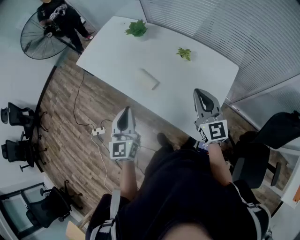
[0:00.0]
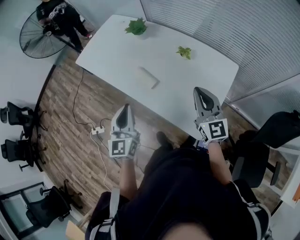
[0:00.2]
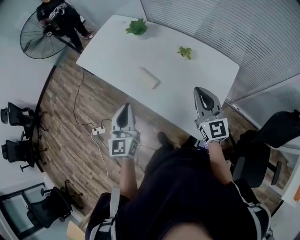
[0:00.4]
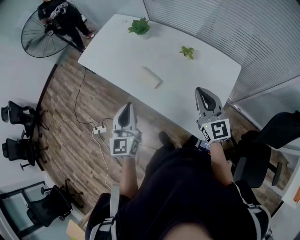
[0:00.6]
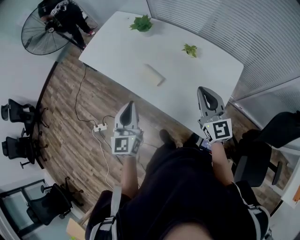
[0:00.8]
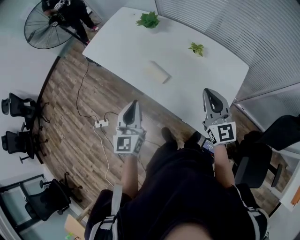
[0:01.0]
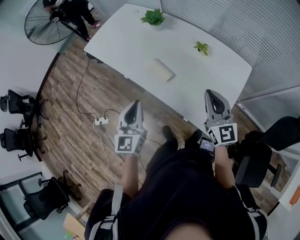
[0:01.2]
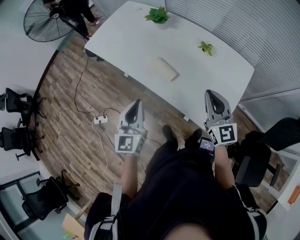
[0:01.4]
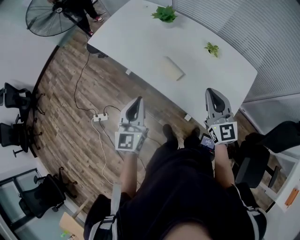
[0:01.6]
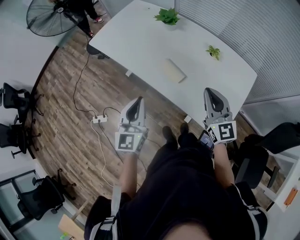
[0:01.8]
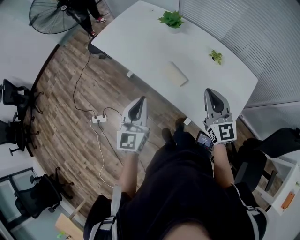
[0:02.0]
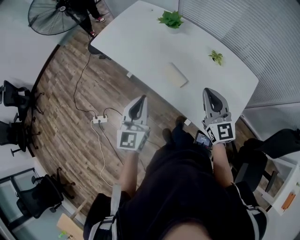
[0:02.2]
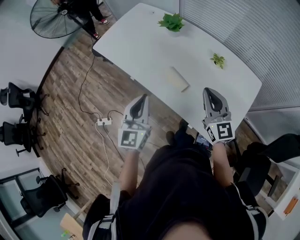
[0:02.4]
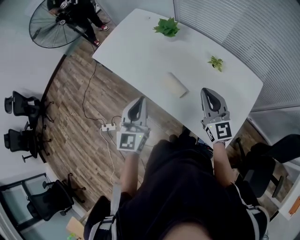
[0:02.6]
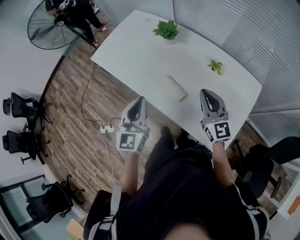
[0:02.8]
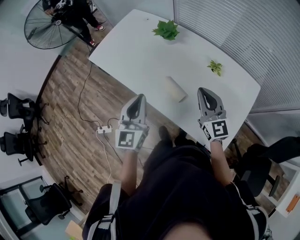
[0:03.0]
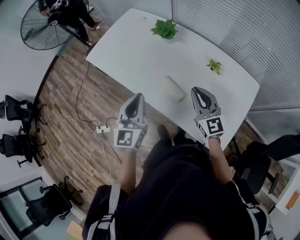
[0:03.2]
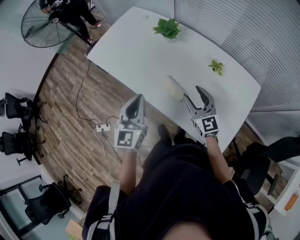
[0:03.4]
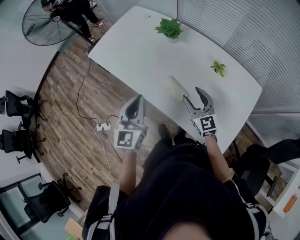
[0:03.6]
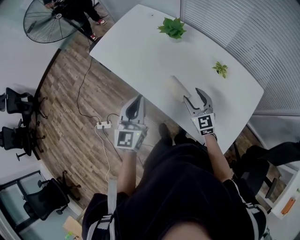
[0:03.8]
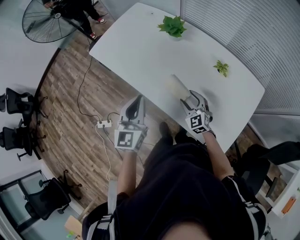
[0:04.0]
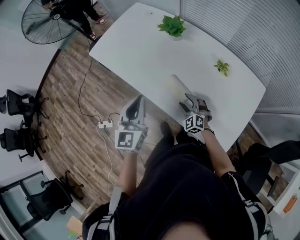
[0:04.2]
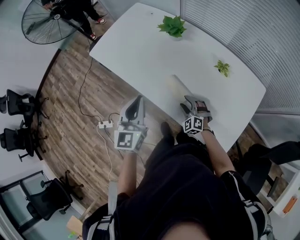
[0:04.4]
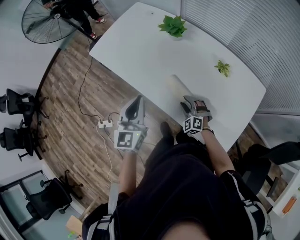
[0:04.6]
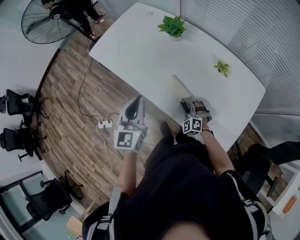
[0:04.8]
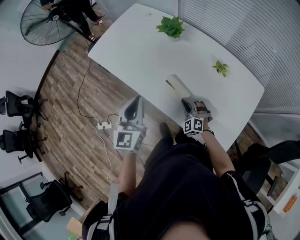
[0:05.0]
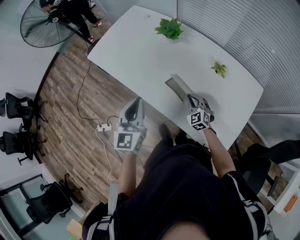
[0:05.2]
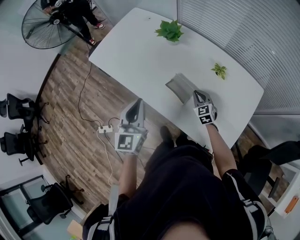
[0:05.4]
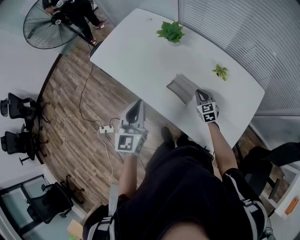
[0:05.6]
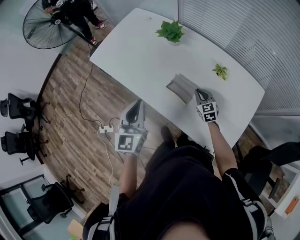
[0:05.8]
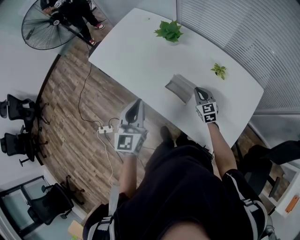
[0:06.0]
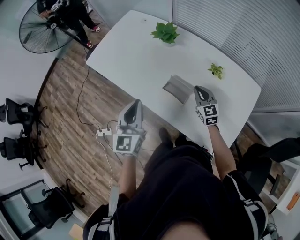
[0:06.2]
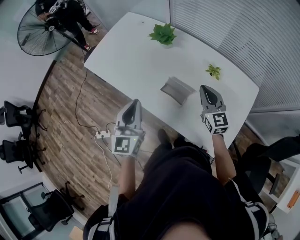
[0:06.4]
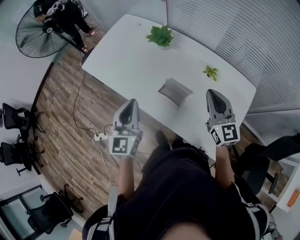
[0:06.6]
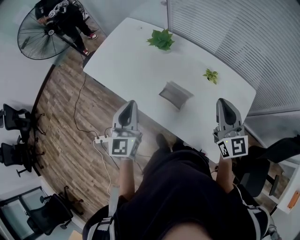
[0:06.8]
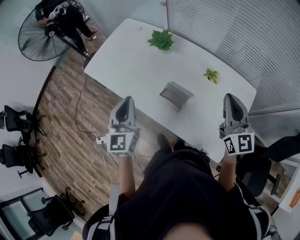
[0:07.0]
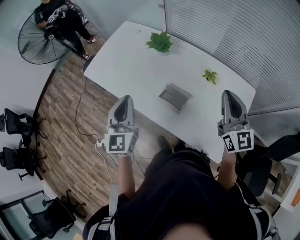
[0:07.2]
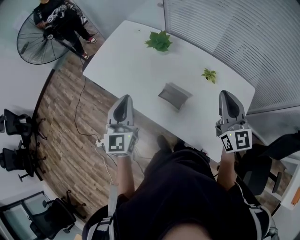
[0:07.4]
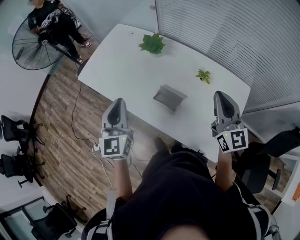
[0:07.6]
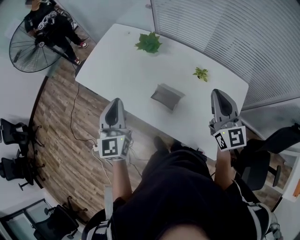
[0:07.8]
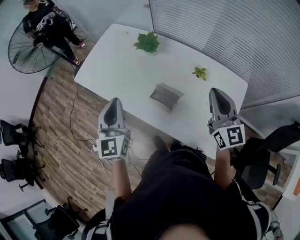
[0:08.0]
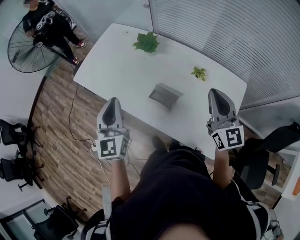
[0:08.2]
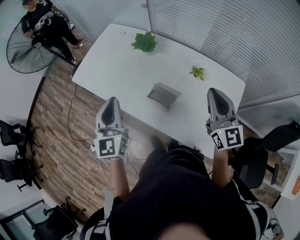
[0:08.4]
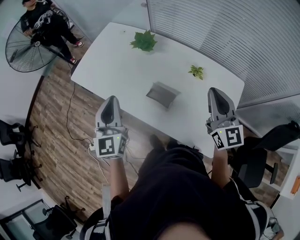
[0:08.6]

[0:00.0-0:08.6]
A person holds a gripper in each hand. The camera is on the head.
0:00.0 to 0:01.4: The grippers both shift to the left by roughly 10 cm.
0:01.4 to 0:02.8: Both grippers travel together forward, roughly 10 cm.
0:02.8 to 0:04.4: The right gripper is displaced downward by about 25 cm, tips its fingers downward by roughly 40 degrees, and opens its fingers. Meanwhile the left gripper shifts by approximately 5 cm.
0:04.4 to 0:05.8: The right gripper shifts approximately 10 cm to the right and forward, rotates around the line of its fingers by approximately 40 degrees, clockwise from behind, and closes its fingers.
0:05.8 to 0:07.2: The right gripper heads upward, covering roughly 35 cm, and tilts its fingers roughly 40 degrees upward, while the left gripper goes approximately 5 cm upward.
0:07.2 to 0:08.6: The grippers make only small movements.

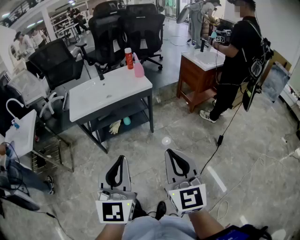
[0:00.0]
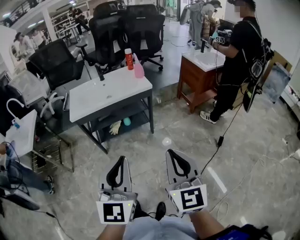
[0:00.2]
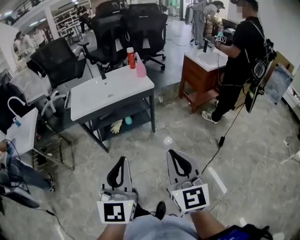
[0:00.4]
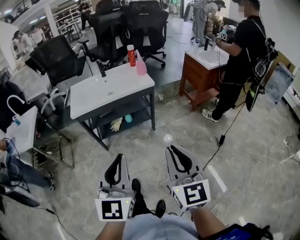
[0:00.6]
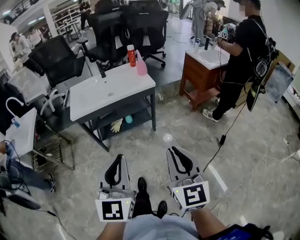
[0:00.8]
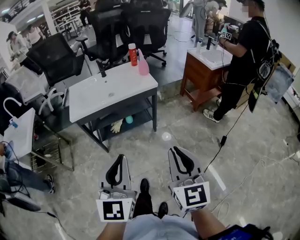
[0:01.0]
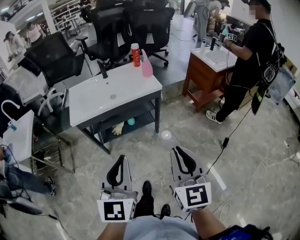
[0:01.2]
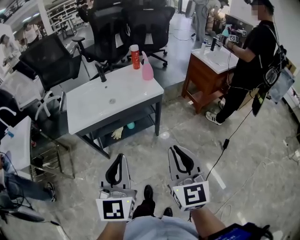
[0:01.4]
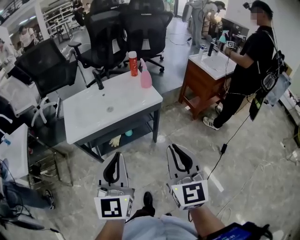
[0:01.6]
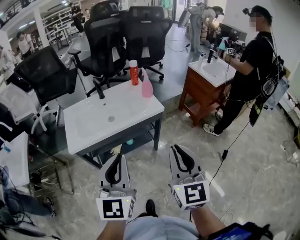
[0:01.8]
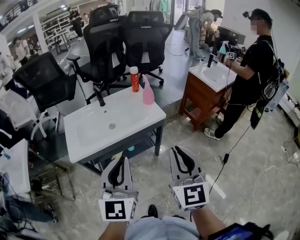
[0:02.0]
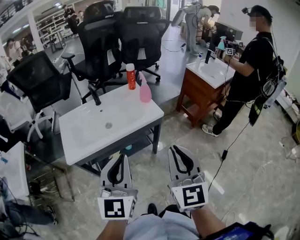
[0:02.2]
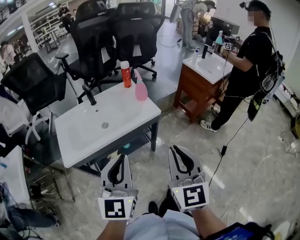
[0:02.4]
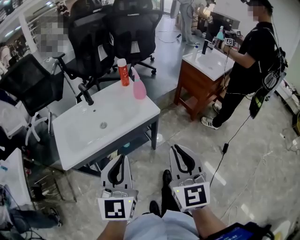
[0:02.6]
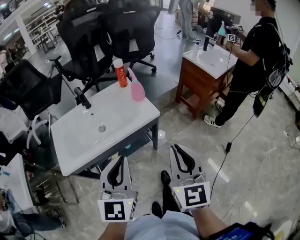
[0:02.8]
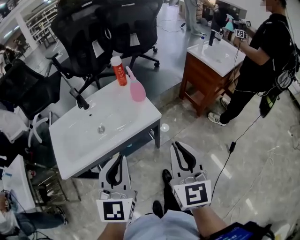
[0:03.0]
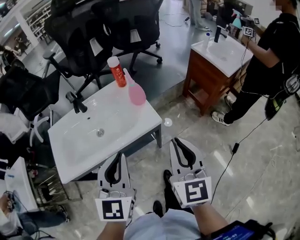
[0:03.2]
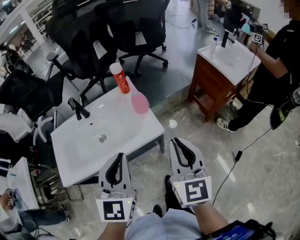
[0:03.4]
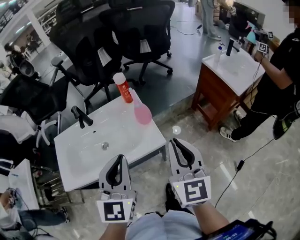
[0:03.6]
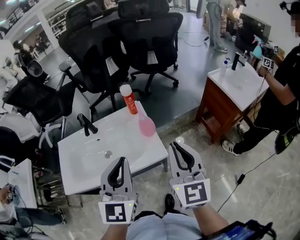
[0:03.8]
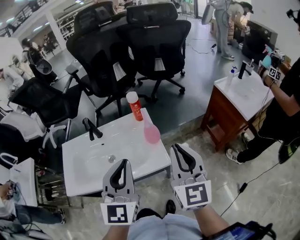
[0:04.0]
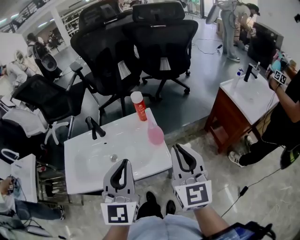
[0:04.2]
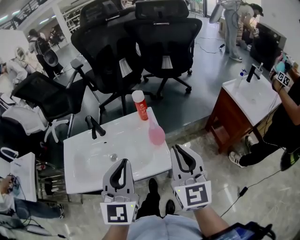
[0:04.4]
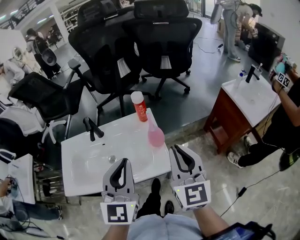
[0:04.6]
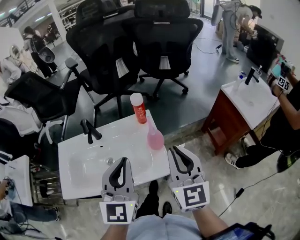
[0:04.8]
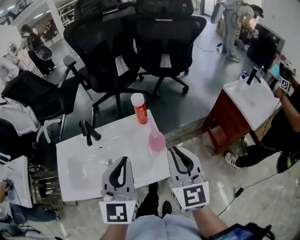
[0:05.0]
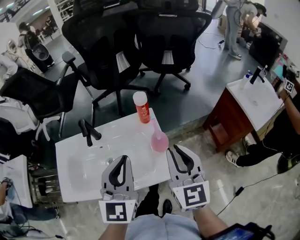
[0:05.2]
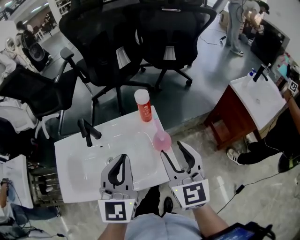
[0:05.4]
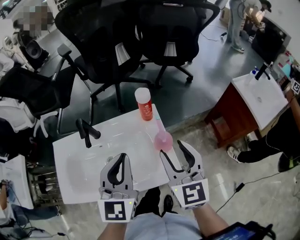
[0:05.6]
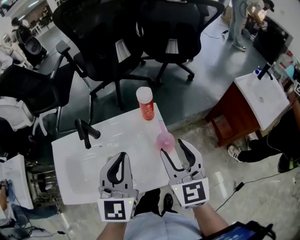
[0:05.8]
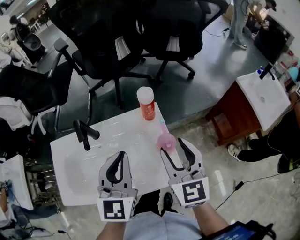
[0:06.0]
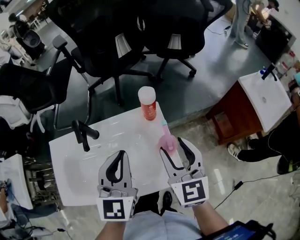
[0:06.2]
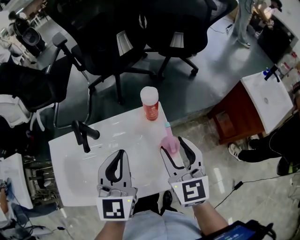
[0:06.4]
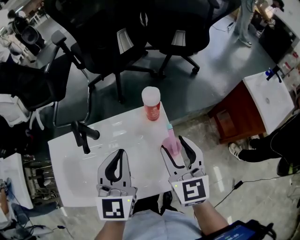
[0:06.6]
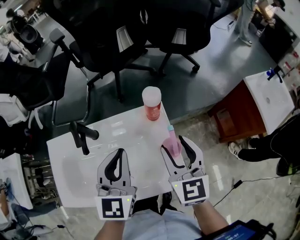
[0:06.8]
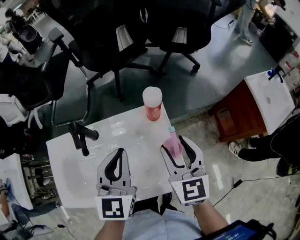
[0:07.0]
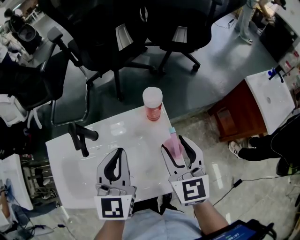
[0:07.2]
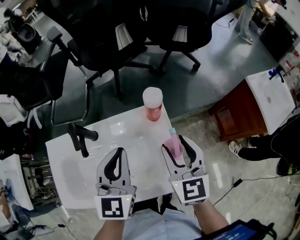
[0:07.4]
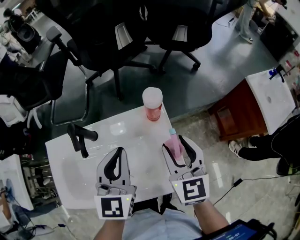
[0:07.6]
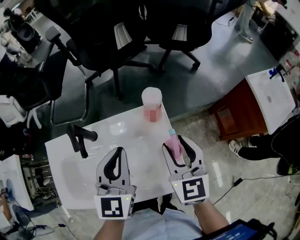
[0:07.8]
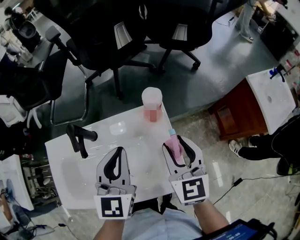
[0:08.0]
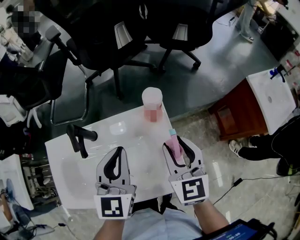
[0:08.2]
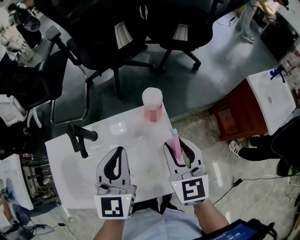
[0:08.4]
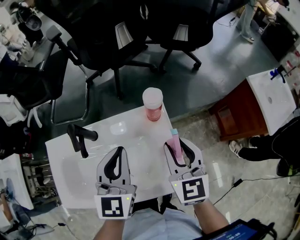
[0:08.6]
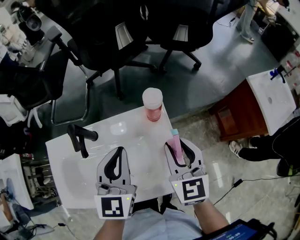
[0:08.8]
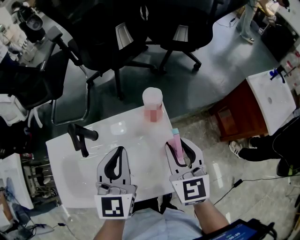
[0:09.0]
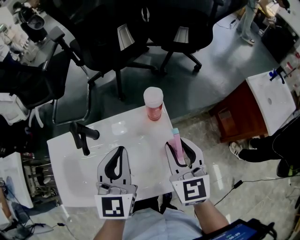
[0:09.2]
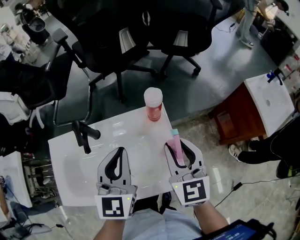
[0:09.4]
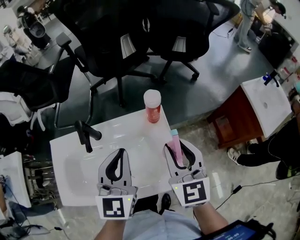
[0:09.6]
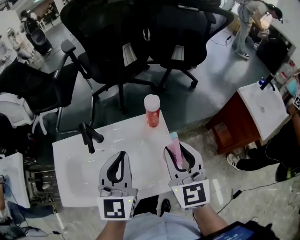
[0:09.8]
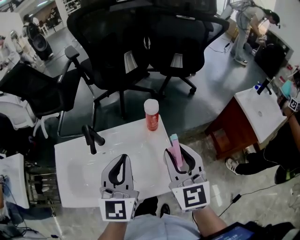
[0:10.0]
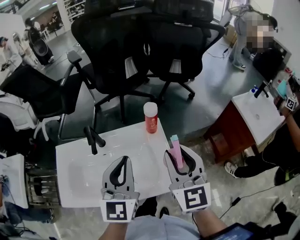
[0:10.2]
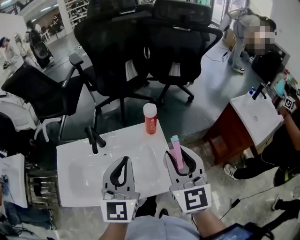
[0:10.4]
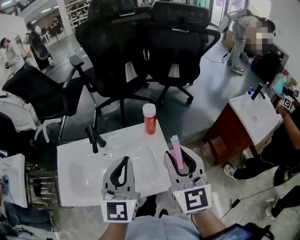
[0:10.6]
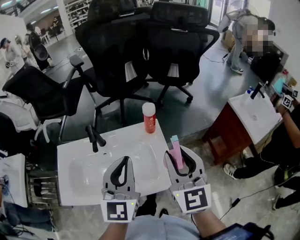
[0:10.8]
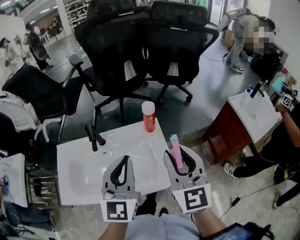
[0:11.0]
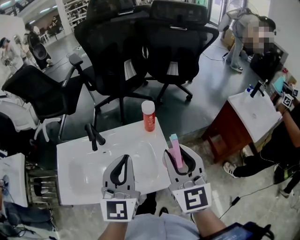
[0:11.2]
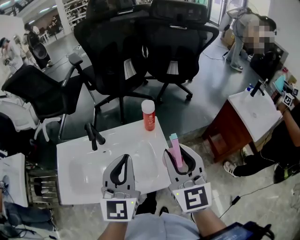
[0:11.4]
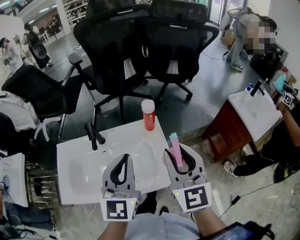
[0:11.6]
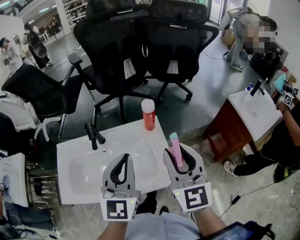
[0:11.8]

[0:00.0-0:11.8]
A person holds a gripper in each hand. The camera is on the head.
0:00.0 to 0:01.4: The right gripper moves forward, roughly 15 cm. The left gripper moves forward and to the left, some 20 cm.
0:01.4 to 0:03.0: The two grippers go about 30 cm forward.
0:03.0 to 0:04.4: Both grippers move forward, some 20 cm.
0:04.4 to 0:06.0: The right gripper is displaced forward, downward and to the left by some 20 cm, and opens its fingers. Meanwhile the left gripper moves forward and downward, roughly 15 cm.
0:06.0 to 0:07.4: Both grippers move forward, roughly 5 cm.
0:07.4 to 0:08.8: The right gripper closes.
0:08.8 to 0:10.4: The right gripper is displaced upward and backward by about 15 cm. Meanwhile the left gripper moves backward and upward, about 15 cm.
0:10.4 to 0:11.8: The grippers move only a little.

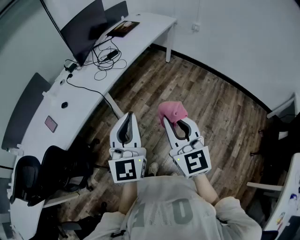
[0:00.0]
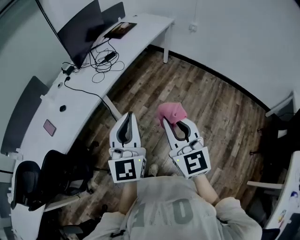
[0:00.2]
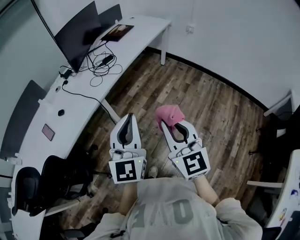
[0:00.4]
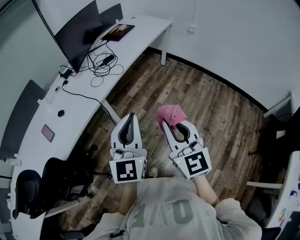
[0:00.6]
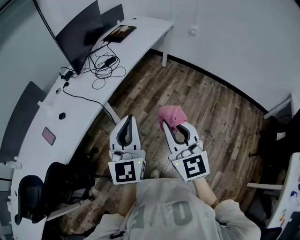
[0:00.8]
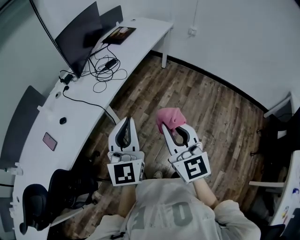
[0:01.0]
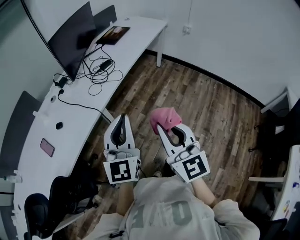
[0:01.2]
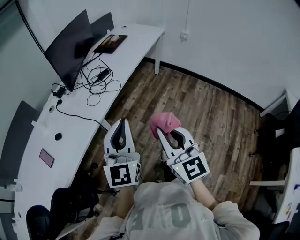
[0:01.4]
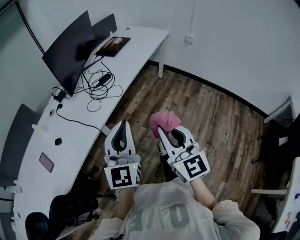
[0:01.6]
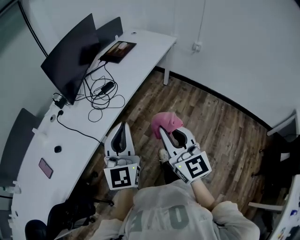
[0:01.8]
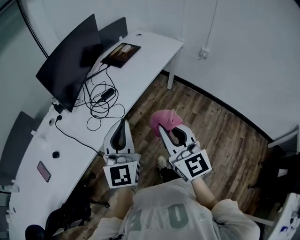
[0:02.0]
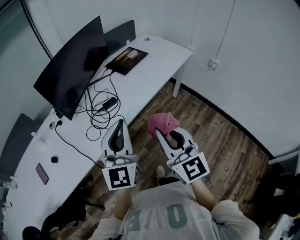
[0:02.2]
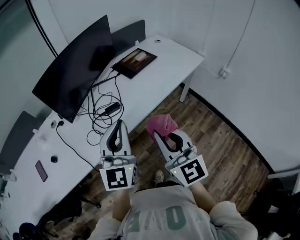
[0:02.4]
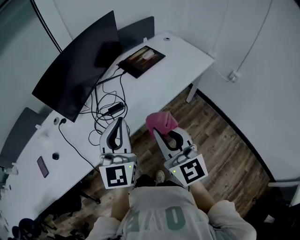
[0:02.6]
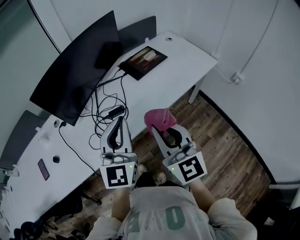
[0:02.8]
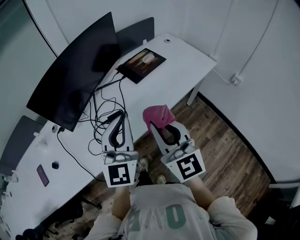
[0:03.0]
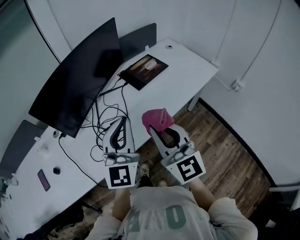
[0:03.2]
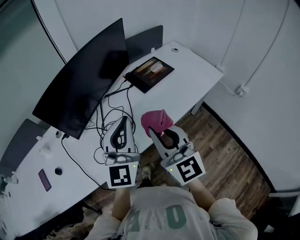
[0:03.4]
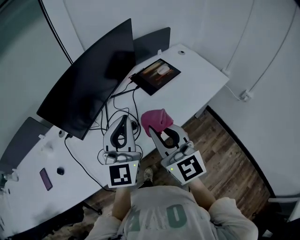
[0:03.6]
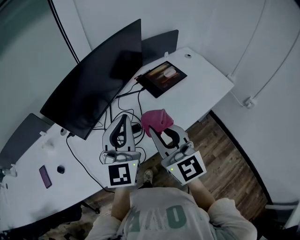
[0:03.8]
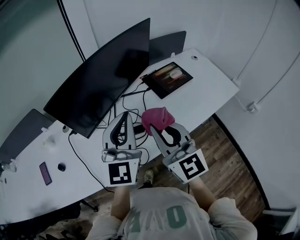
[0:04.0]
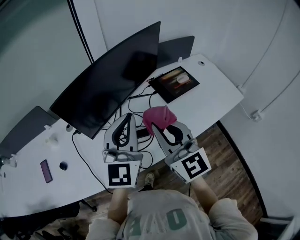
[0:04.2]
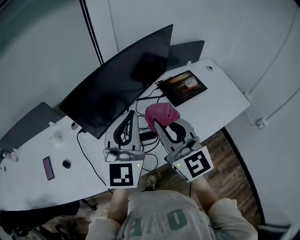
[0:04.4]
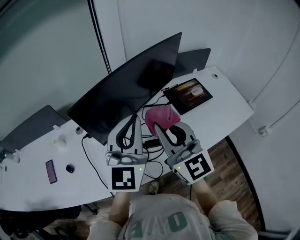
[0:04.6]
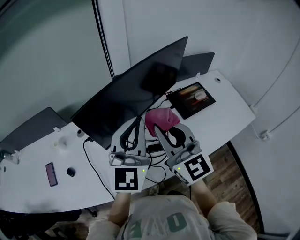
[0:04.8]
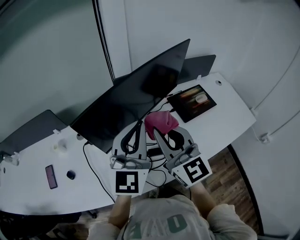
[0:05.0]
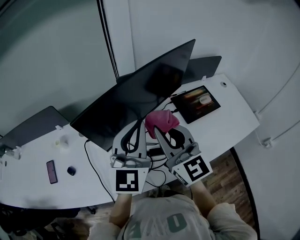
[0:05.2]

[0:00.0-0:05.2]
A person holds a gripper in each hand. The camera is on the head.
0:00.0 to 0:01.8: Both grippers travel together forward, some 25 cm.
0:01.8 to 0:03.4: The grippers both shift forward by some 35 cm. The right gripper rotates roughly 30 degrees.
0:03.4 to 0:05.2: Both grippers move forward and to the left, about 20 cm.
